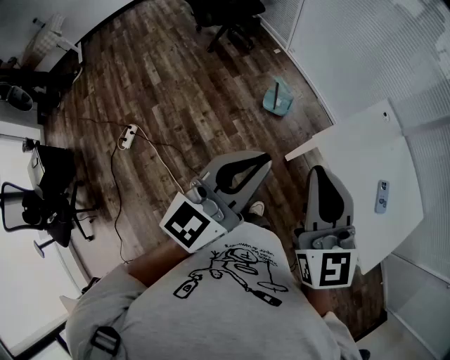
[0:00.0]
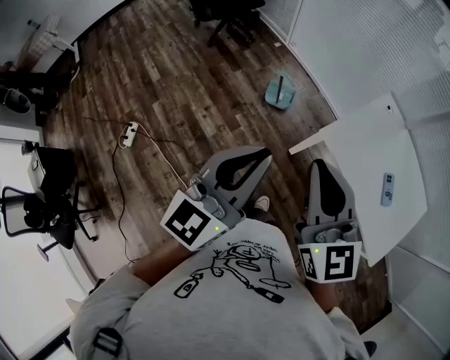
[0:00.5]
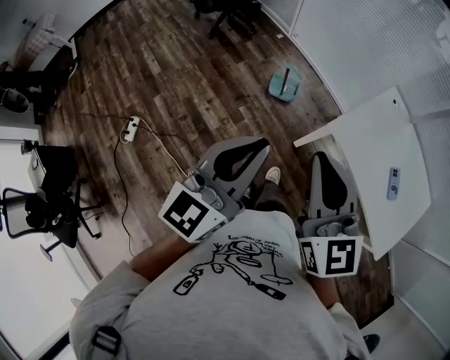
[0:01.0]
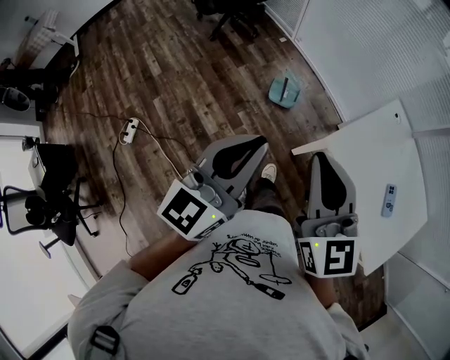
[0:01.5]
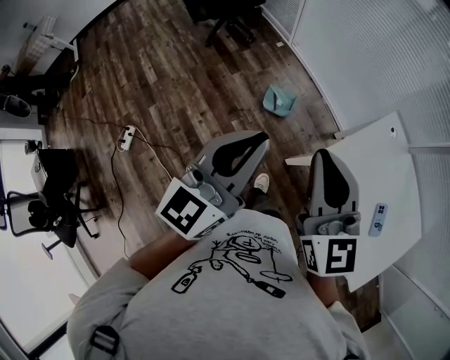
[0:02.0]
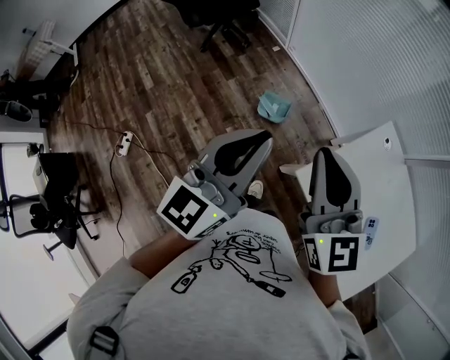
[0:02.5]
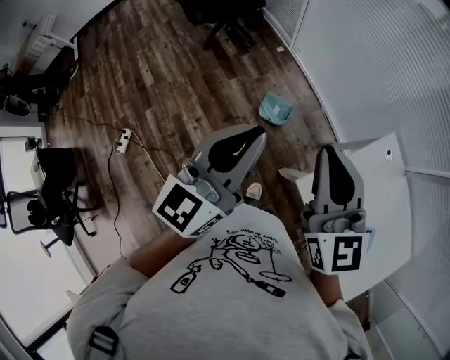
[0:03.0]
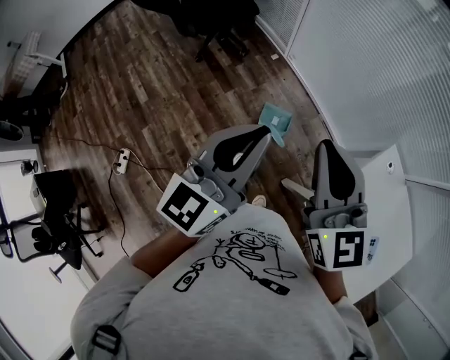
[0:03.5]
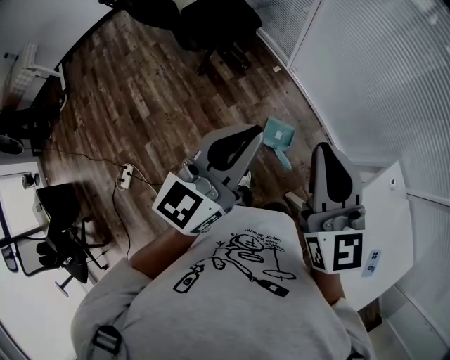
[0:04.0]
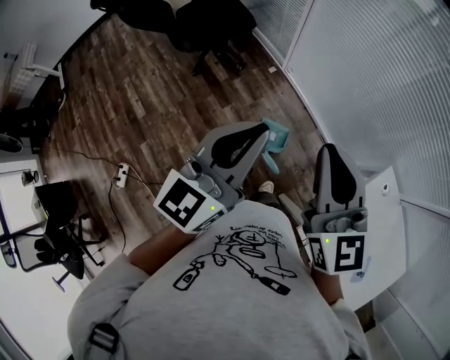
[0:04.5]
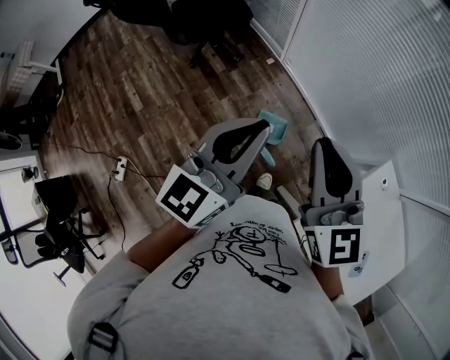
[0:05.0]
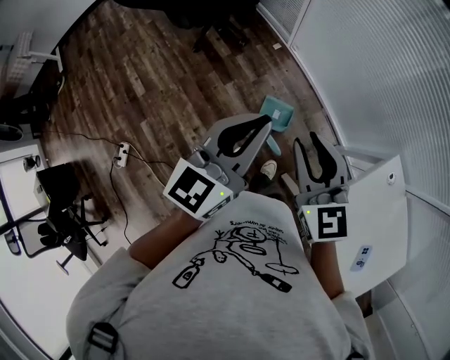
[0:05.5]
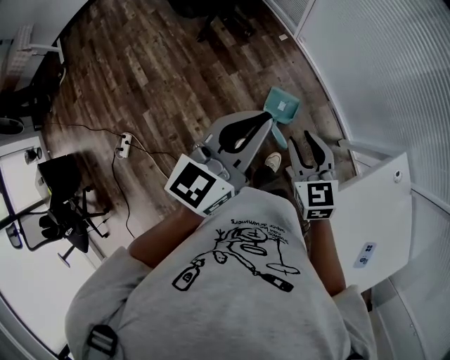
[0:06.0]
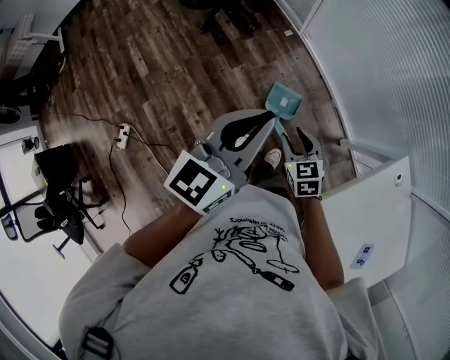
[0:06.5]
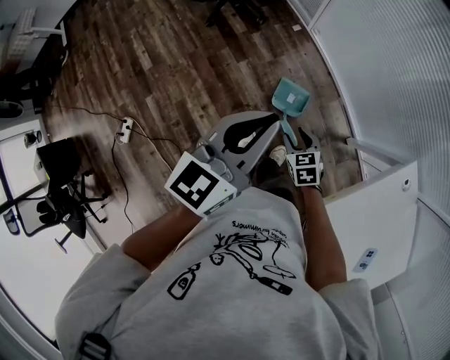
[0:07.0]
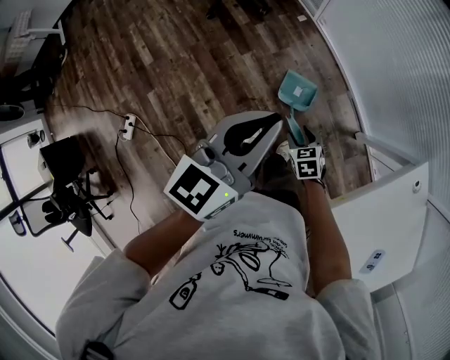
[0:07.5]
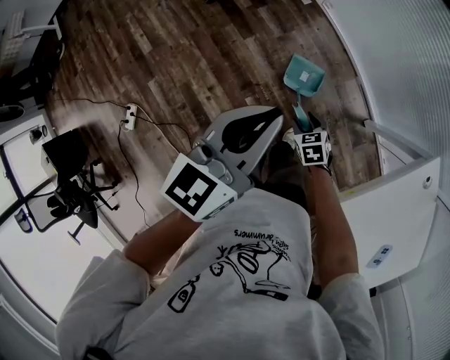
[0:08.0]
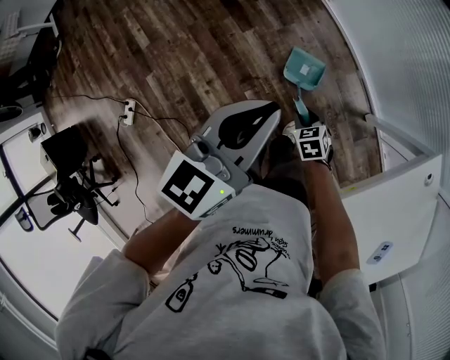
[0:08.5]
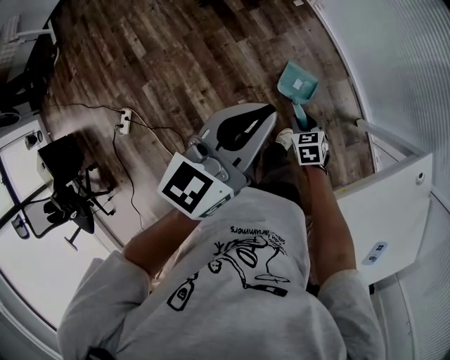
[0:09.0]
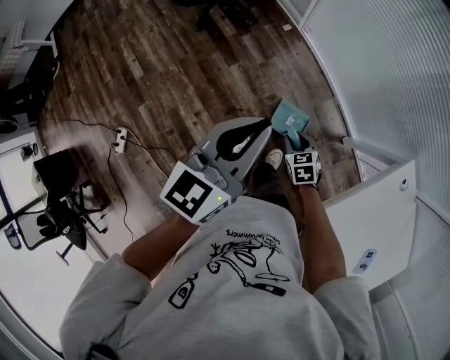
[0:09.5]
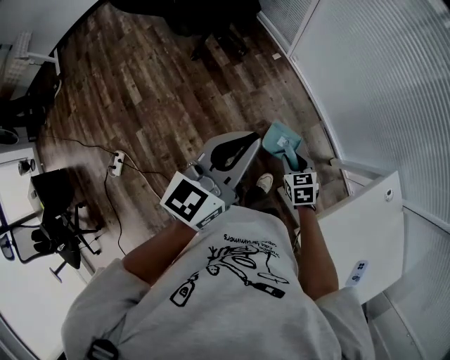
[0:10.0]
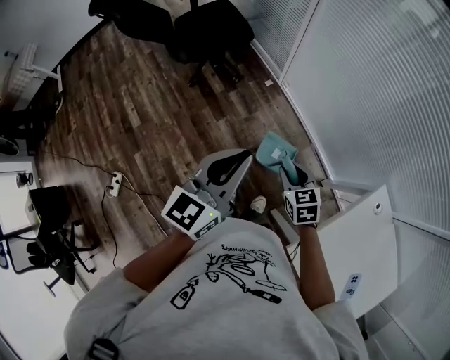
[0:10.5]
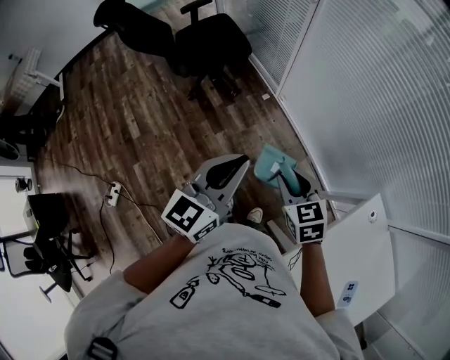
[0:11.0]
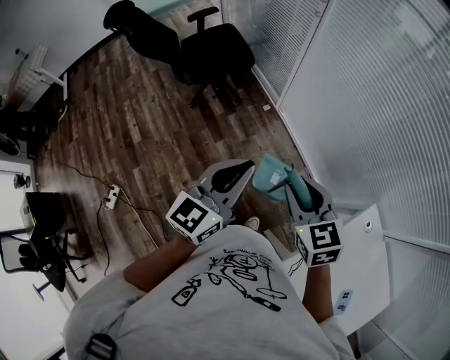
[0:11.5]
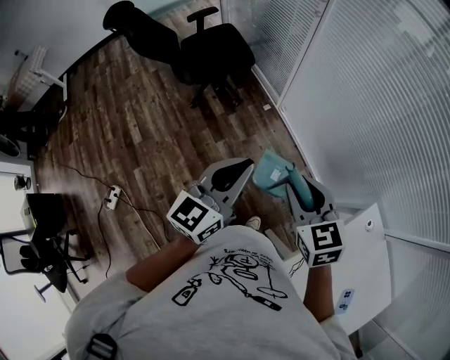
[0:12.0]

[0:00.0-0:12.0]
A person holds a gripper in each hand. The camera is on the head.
0:00.0 to 0:02.0: Both grippers travel together forward, approximately 20 cm.
0:02.0 to 0:04.0: The right gripper travels forward by some 30 cm, while the left gripper heads forward and to the left, covering about 35 cm.
0:04.0 to 0:06.0: The left gripper is displaced downward and to the right by about 10 cm. The right gripper goes some 25 cm downward, rotates some 30 degrees, and opens.
0:06.0 to 0:08.0: The right gripper moves downward, some 35 cm, and rotates roughly 30 degrees; the left gripper moves downward, about 10 cm.
0:08.0 to 0:10.0: The left gripper goes about 10 cm upward. Meanwhile the right gripper moves upward, some 15 cm.
0:10.0 to 0:12.0: The right gripper is displaced upward by about 35 cm, and swivels some 20 degrees. The left gripper moves upward, roughly 5 cm.

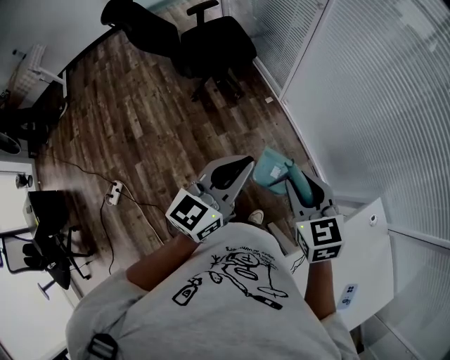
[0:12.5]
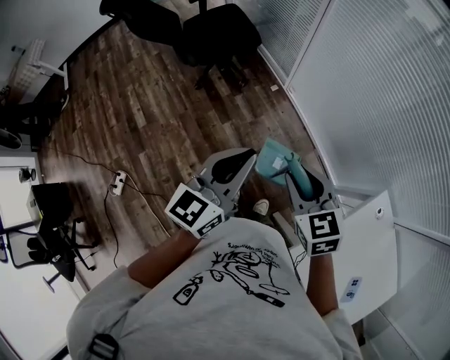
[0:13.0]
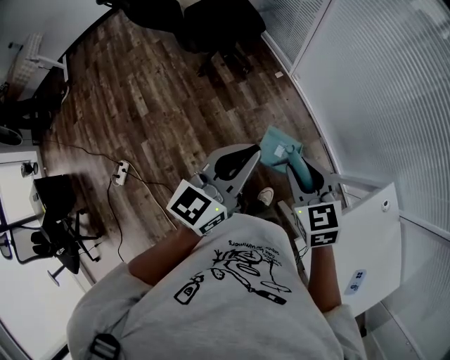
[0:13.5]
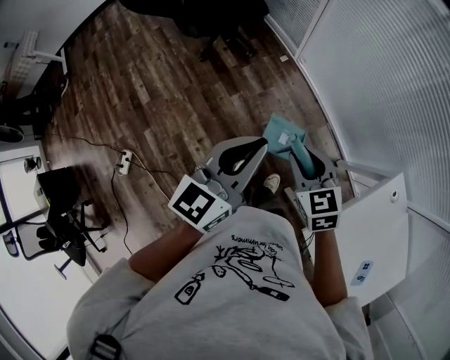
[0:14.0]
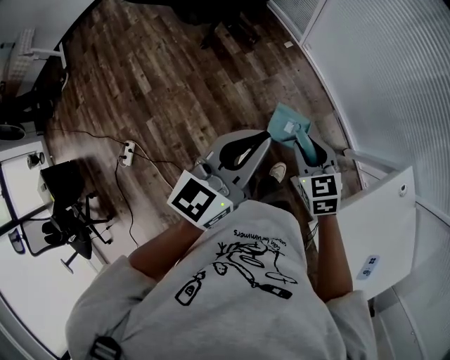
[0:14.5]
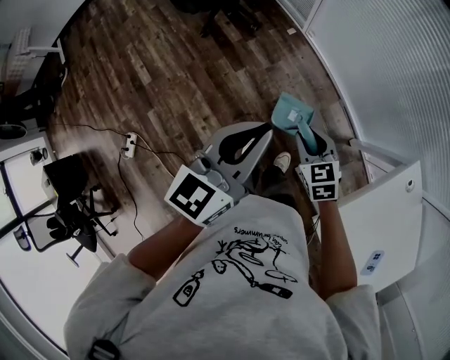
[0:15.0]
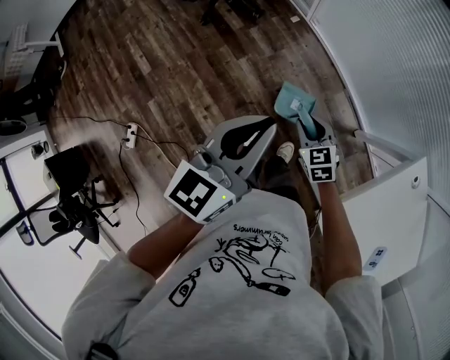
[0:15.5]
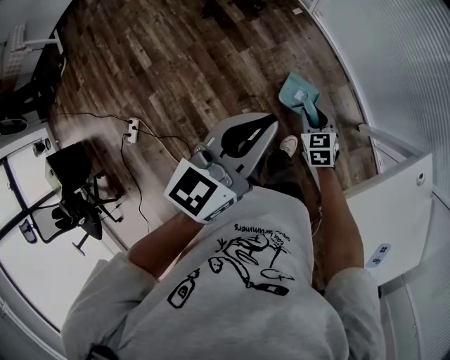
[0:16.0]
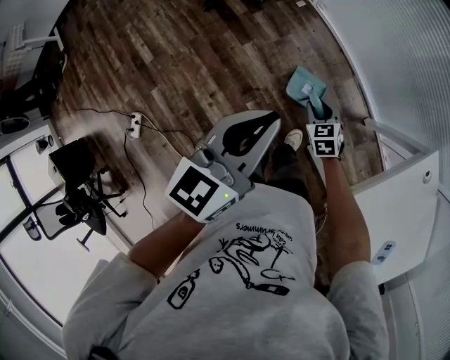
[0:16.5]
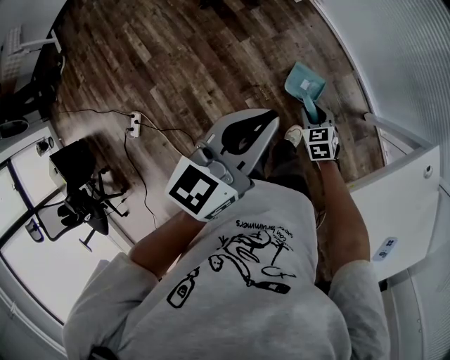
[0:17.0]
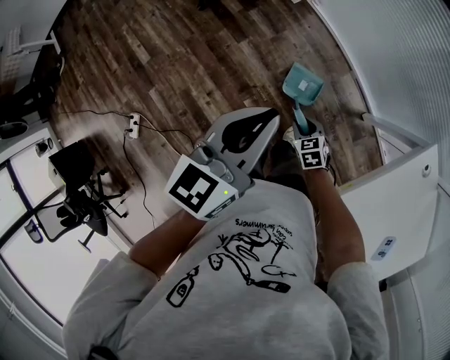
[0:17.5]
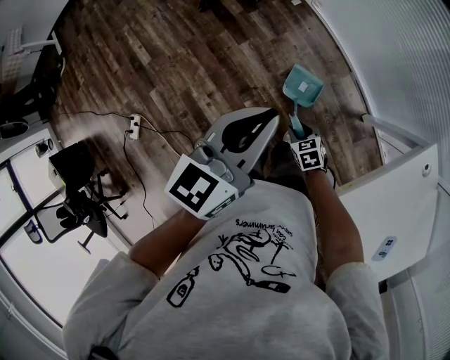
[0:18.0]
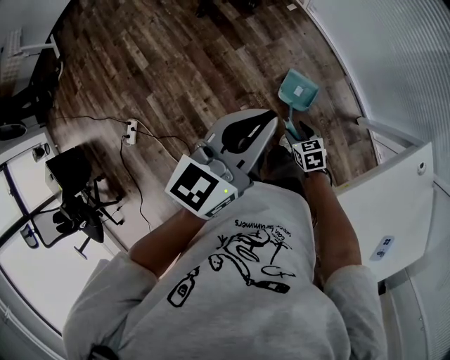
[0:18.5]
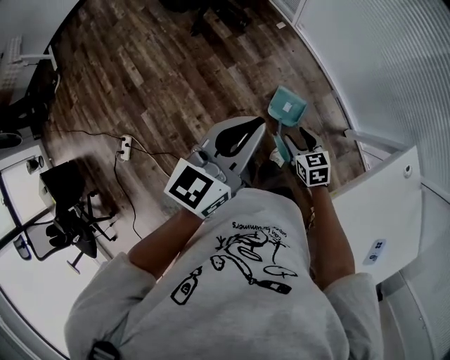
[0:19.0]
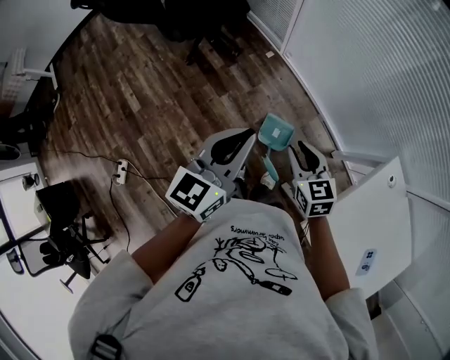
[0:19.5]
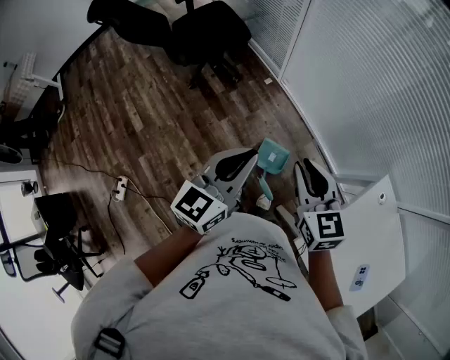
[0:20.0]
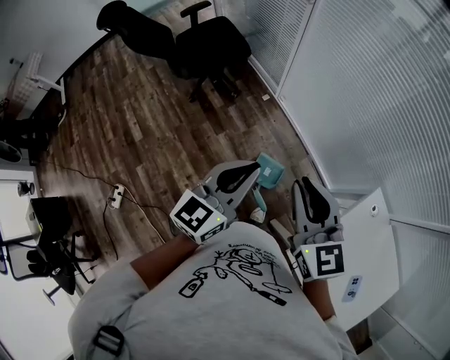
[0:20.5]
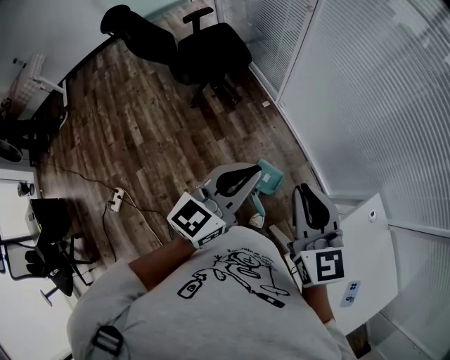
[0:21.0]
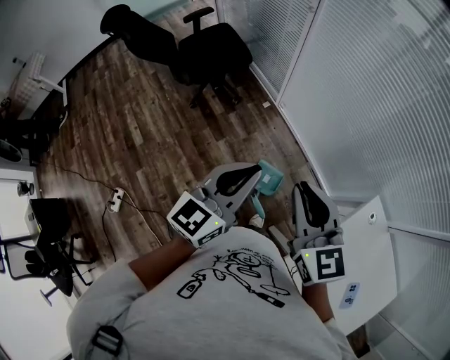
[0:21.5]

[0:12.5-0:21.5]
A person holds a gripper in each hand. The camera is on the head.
0:12.5 to 0:14.5: The right gripper shifts about 20 cm downward; the left gripper moves downward, about 5 cm.
0:14.5 to 0:17.0: The left gripper heads downward, covering roughly 10 cm. The right gripper travels downward by about 25 cm.
0:17.0 to 0:19.5: The right gripper shifts roughly 25 cm upward, rotates about 20 degrees, and opens, then closes again. The left gripper moves upward, roughly 5 cm.
0:19.5 to 0:21.5: The right gripper moves upward, about 25 cm, and changes its angle by approximately 20 degrees. The left gripper moves upward, roughly 10 cm.

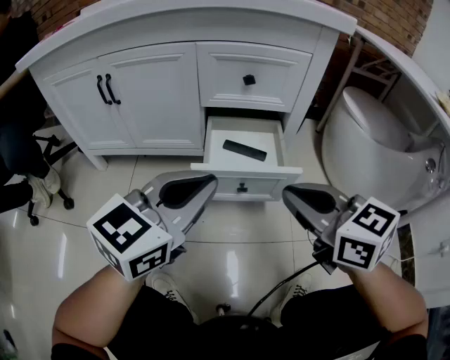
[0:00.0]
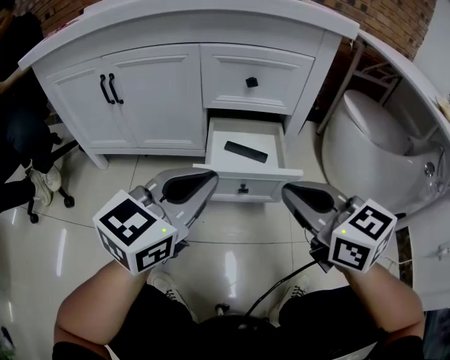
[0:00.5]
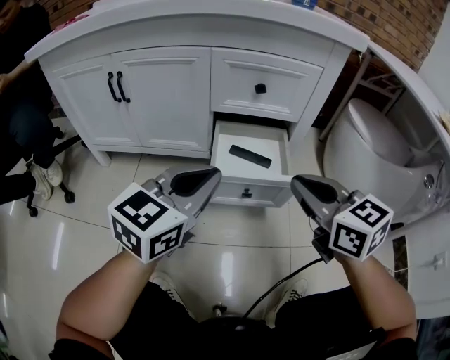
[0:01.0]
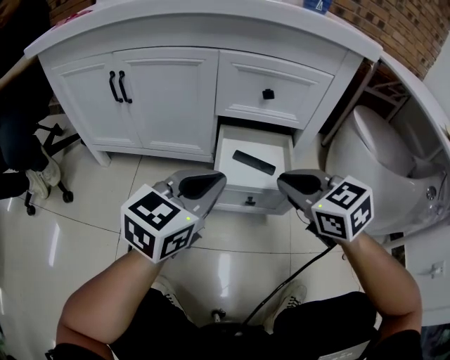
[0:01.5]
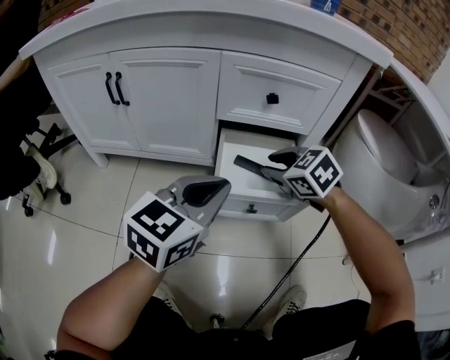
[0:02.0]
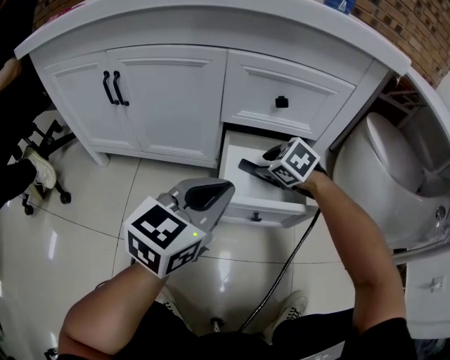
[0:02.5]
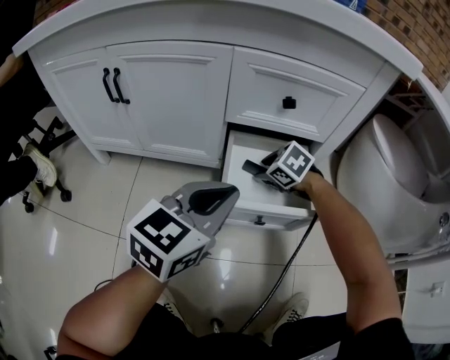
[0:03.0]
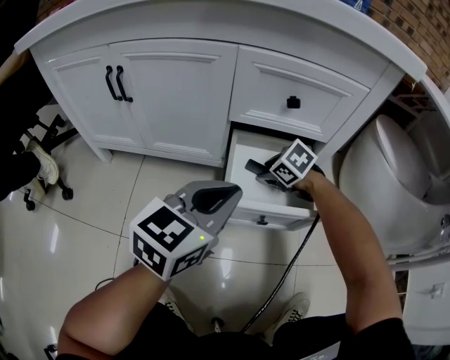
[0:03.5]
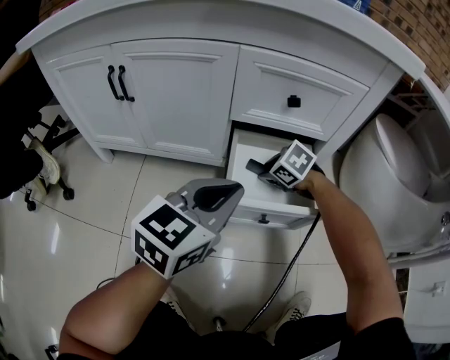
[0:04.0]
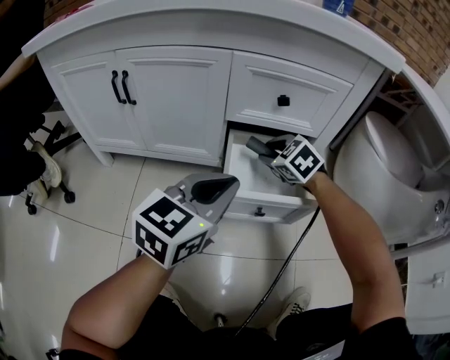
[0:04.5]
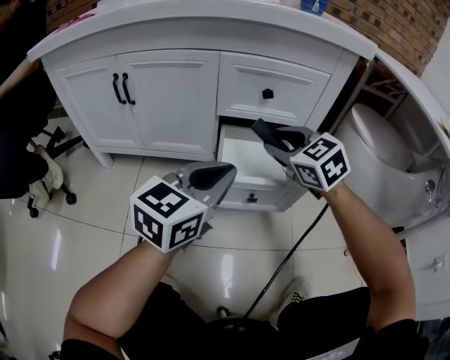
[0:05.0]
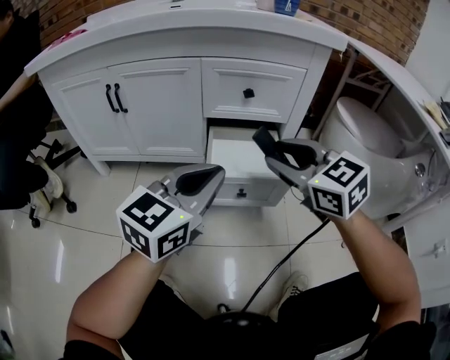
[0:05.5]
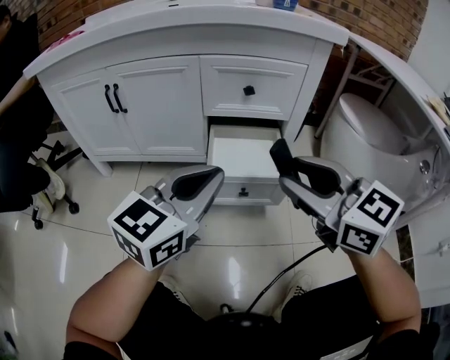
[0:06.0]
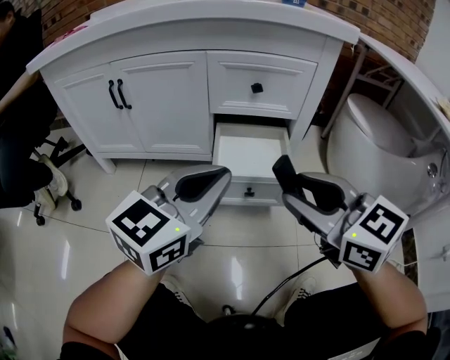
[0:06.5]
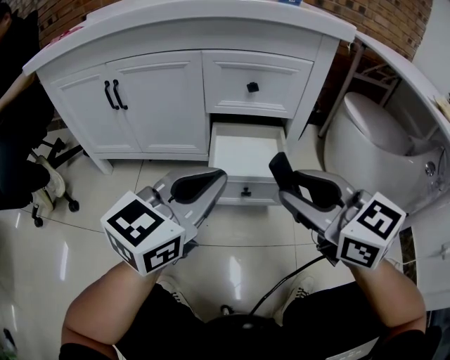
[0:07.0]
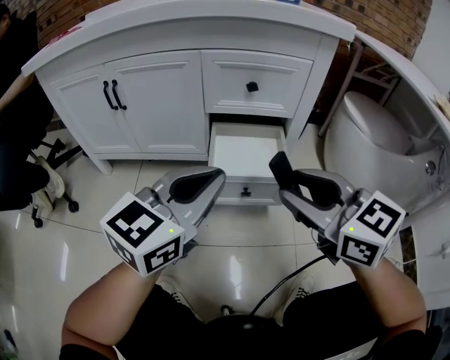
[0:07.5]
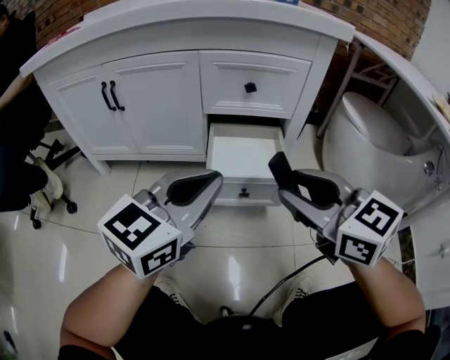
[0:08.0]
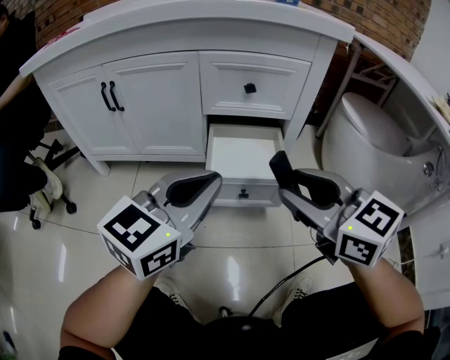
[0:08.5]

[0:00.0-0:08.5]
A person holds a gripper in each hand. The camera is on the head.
0:00.0 to 0:02.0: The right gripper is displaced forward and downward by roughly 20 cm, swivels roughly 40 degrees, and opens up. The left gripper goes some 5 cm forward.
0:02.0 to 0:04.0: The right gripper is displaced downward and forward by roughly 15 cm.
0:04.0 to 0:06.5: The left gripper travels backward and upward by about 10 cm, while the right gripper shifts roughly 40 cm upward and backward, and tips its fingers upward by roughly 50 degrees.
0:06.5 to 0:08.5: The grippers stay close to where they were, moving slightly.
